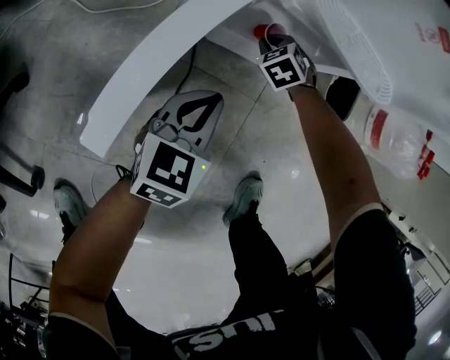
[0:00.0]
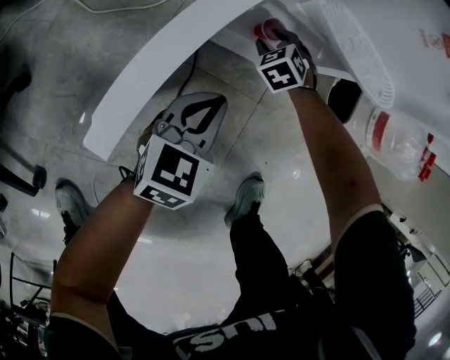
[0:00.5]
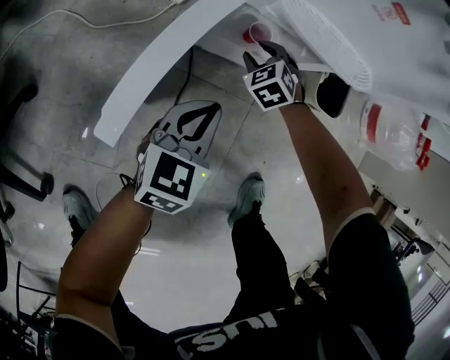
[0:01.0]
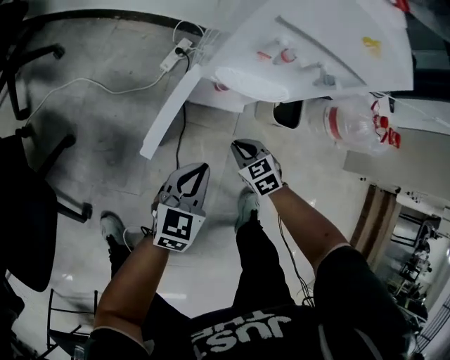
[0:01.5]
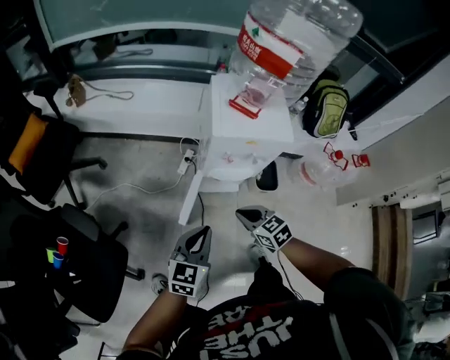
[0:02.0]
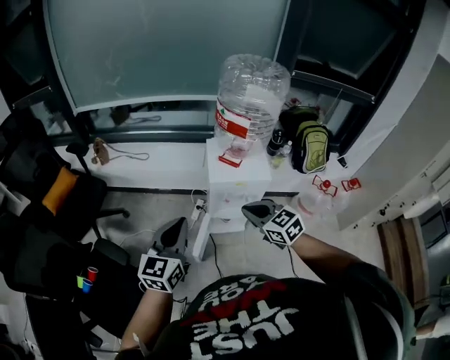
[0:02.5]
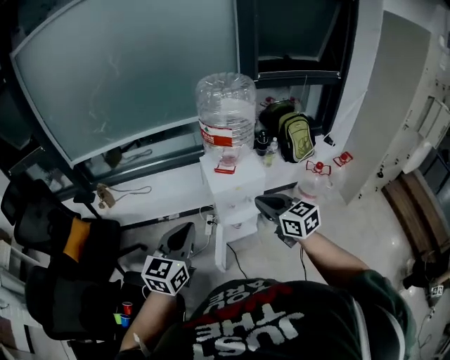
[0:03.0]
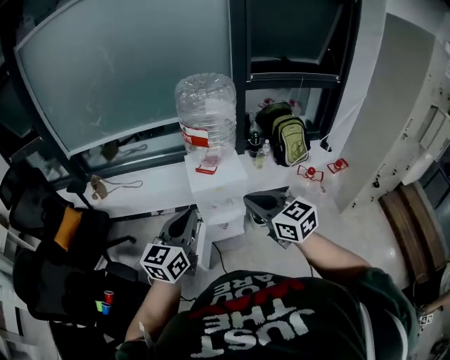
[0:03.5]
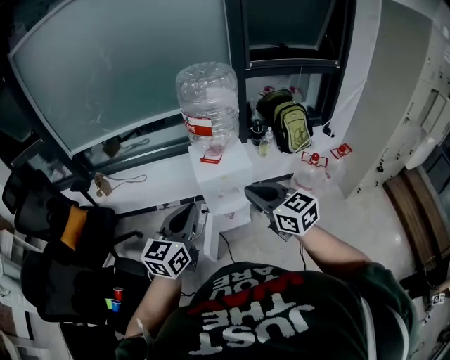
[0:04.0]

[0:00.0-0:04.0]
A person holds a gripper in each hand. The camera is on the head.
0:00.0 to 0:02.0: The right gripper moves upward and backward, some 70 cm, rotates approximately 50 degrees, and opens and closes again. The left gripper heads upward, covering approximately 50 cm.
0:02.0 to 0:04.0: Both grippers travel together upward, about 40 cm. The right gripper tips its fingers upward by some 30 degrees.

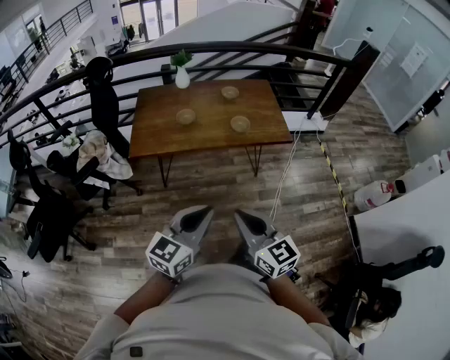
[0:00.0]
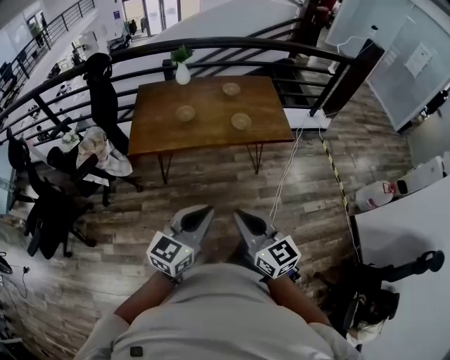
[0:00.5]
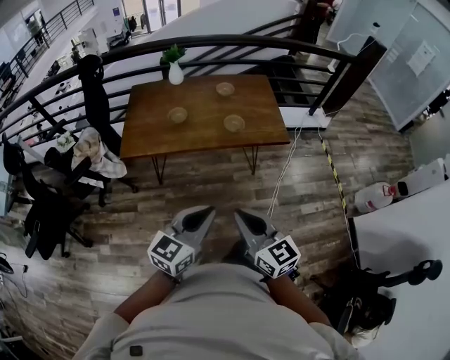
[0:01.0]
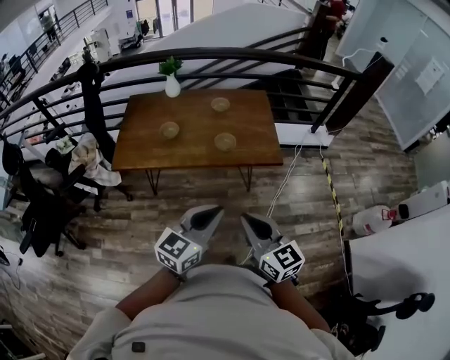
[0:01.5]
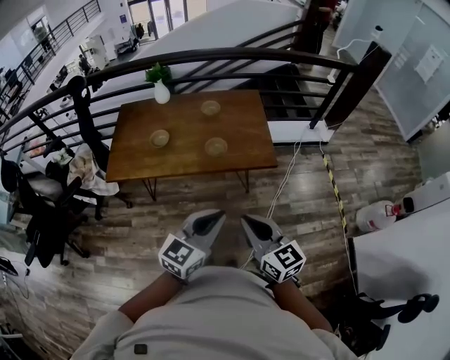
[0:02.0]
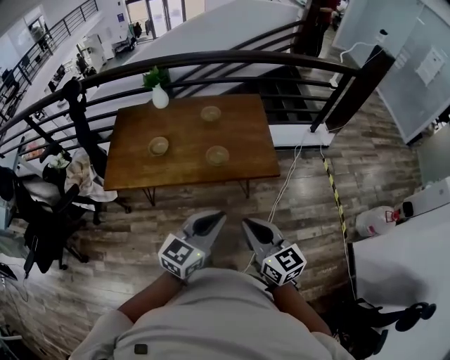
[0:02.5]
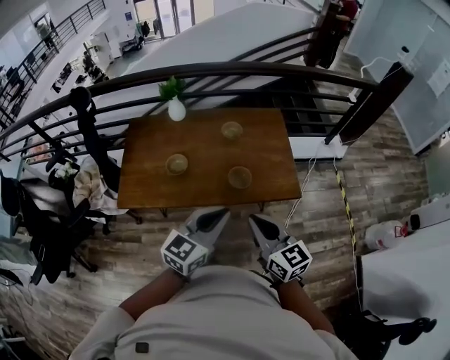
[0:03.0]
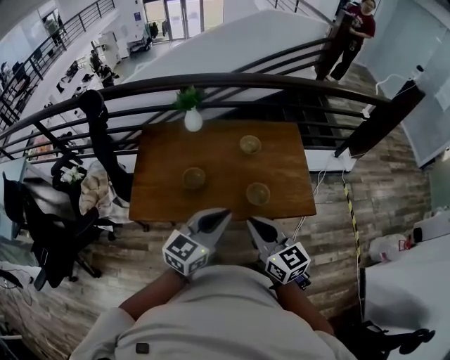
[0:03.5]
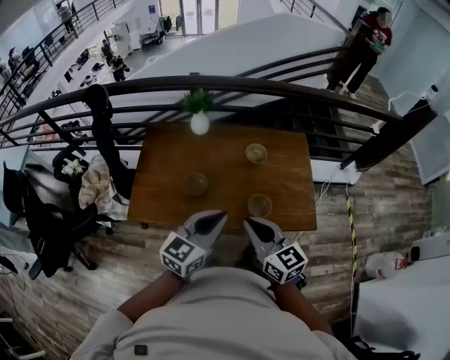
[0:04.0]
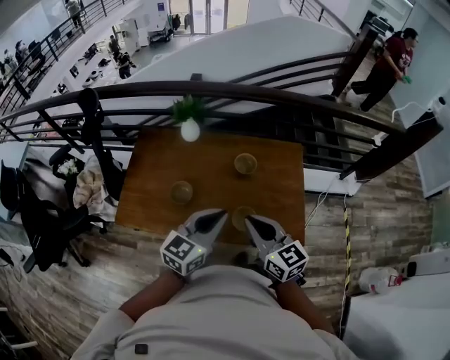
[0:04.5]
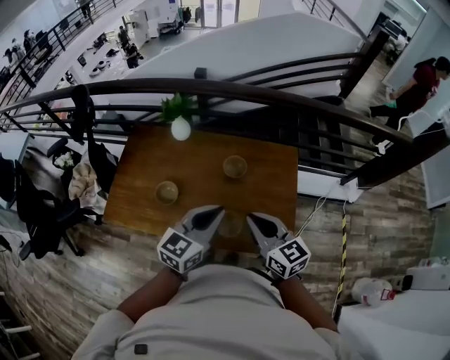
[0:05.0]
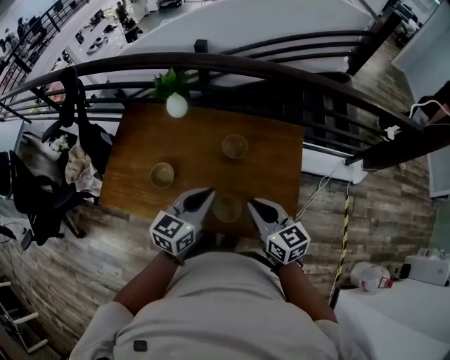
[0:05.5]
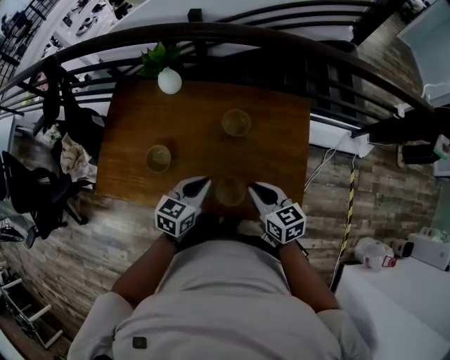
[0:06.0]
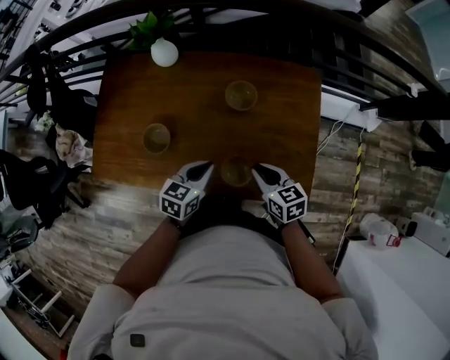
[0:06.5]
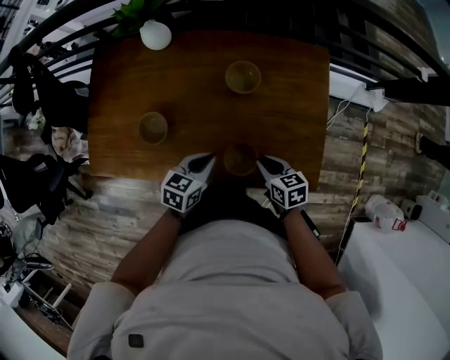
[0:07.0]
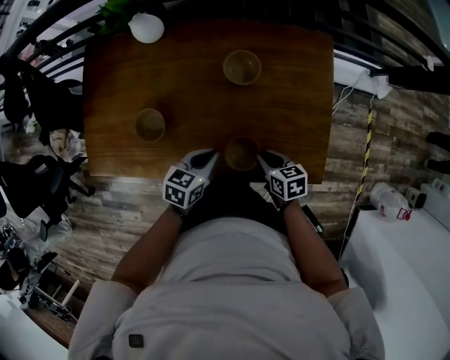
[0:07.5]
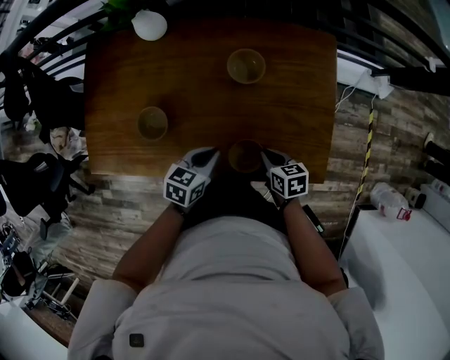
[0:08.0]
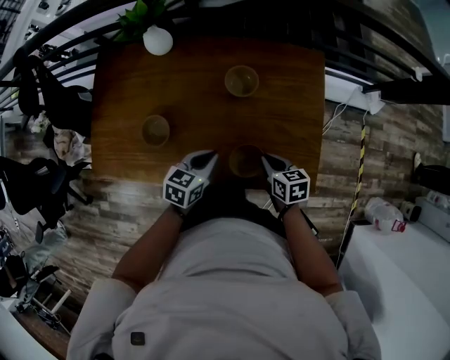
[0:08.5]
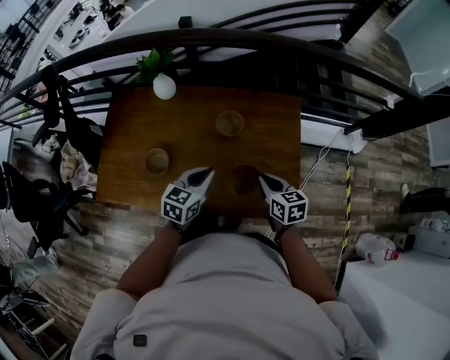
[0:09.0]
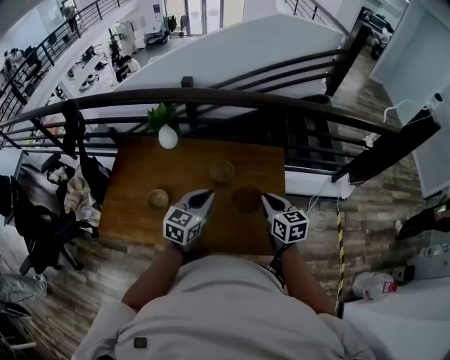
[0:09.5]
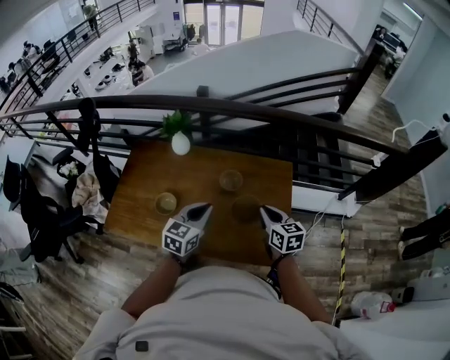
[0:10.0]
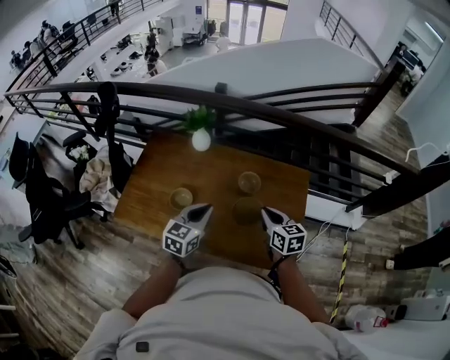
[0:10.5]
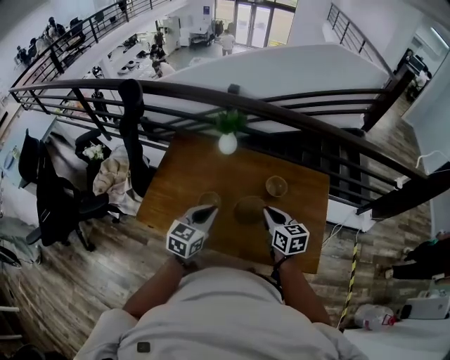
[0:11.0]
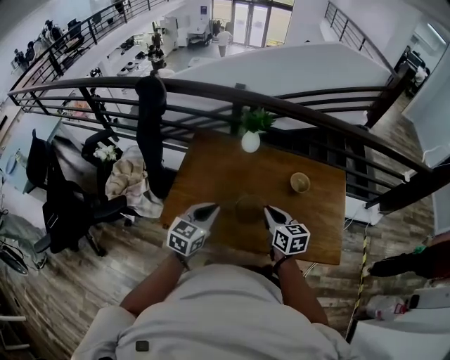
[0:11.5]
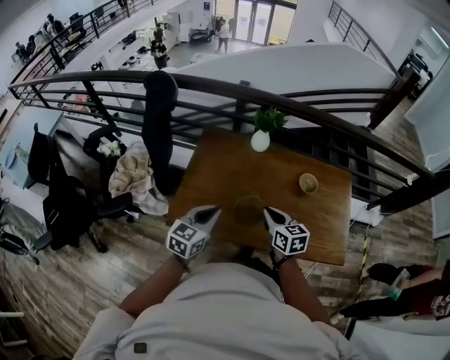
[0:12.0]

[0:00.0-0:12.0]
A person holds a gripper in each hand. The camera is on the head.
0:00.0 to 0:02.0: Both grippers travel together to the right and forward, approximately 30 cm.
0:02.0 to 0:04.0: Both grippers move forward and to the left, about 40 cm.
0:04.0 to 0:06.0: The right gripper shifts about 35 cm to the right, forward and downward, and swivels approximately 20 degrees, while the left gripper moves downward, forward and to the right, about 30 cm, and swivels some 20 degrees.
0:06.0 to 0:08.0: Both grippers move downward, some 20 cm. The right gripper swivels approximately 30 degrees.
0:08.0 to 0:10.0: The two grippers go about 30 cm upward. The right gripper turns by approximately 30 degrees, while the left gripper swivels approximately 30 degrees.
0:10.0 to 0:12.0: The two grippers travel together, to the left, about 50 cm.

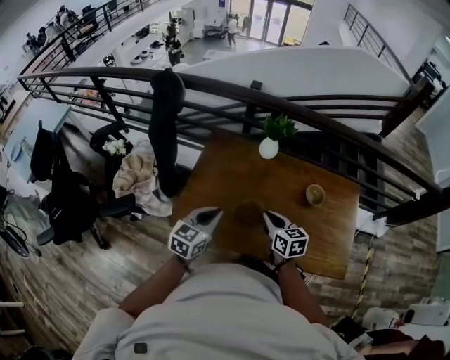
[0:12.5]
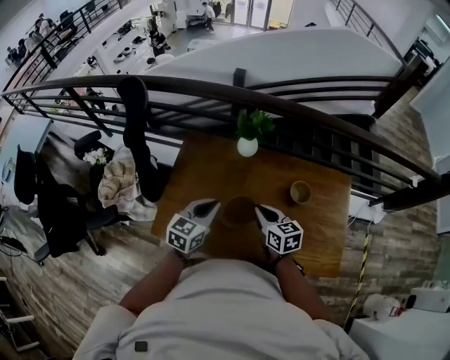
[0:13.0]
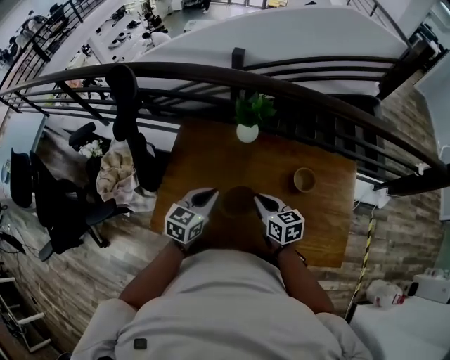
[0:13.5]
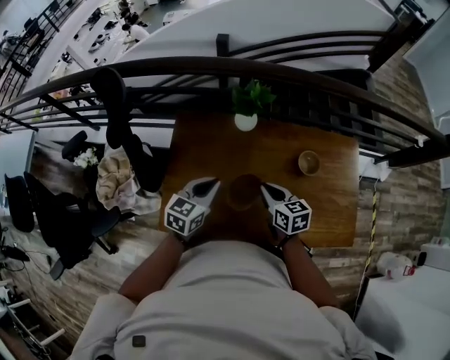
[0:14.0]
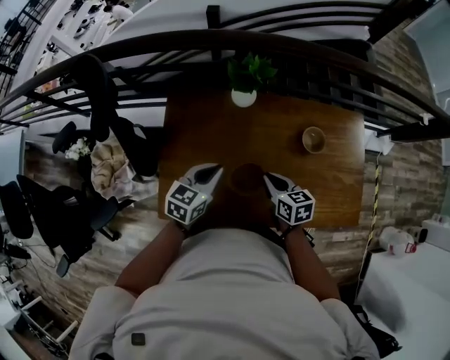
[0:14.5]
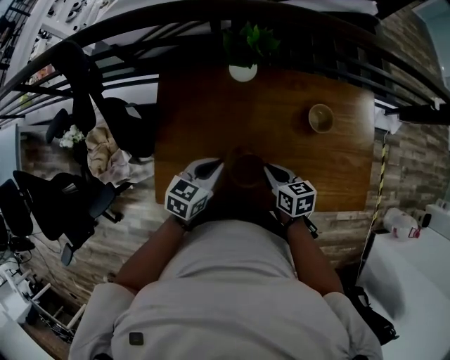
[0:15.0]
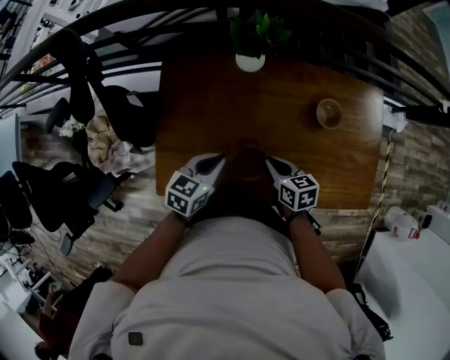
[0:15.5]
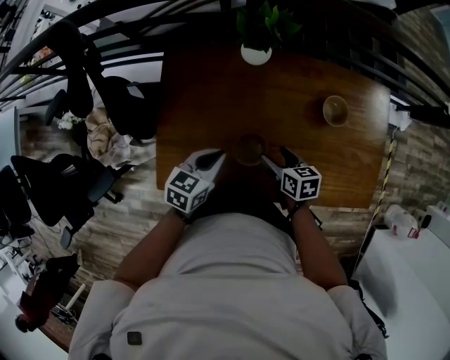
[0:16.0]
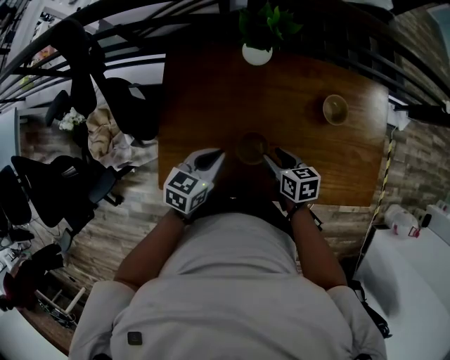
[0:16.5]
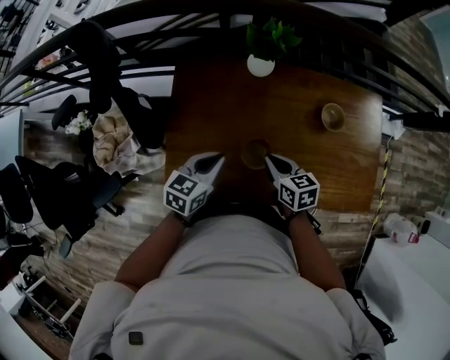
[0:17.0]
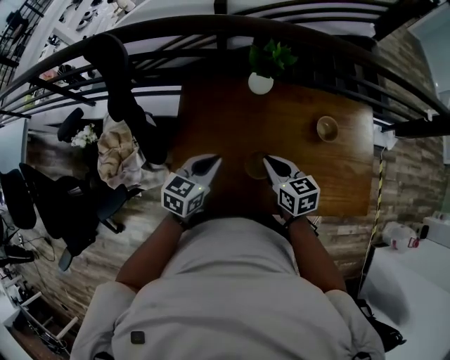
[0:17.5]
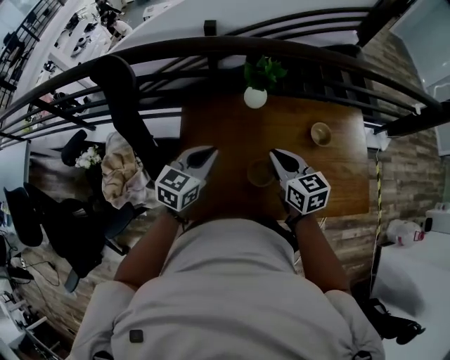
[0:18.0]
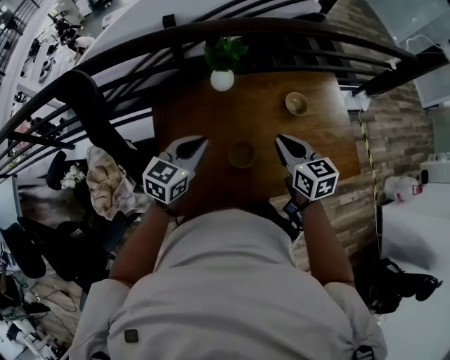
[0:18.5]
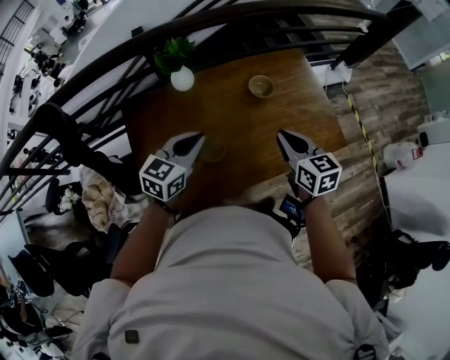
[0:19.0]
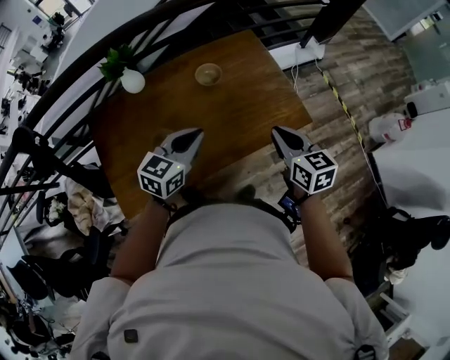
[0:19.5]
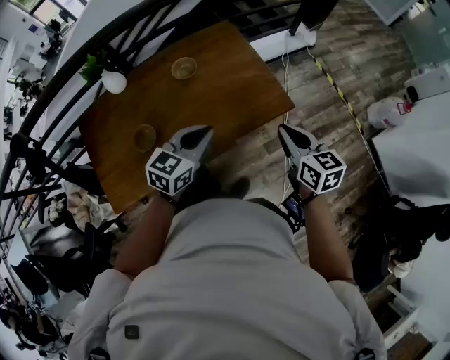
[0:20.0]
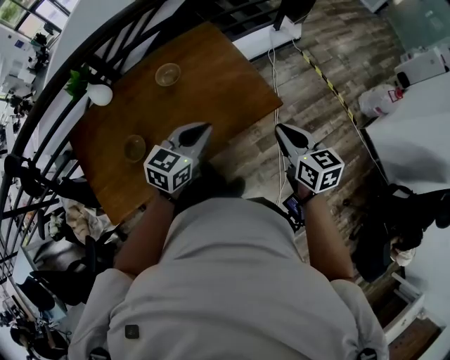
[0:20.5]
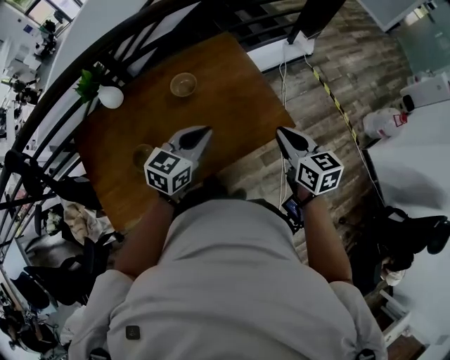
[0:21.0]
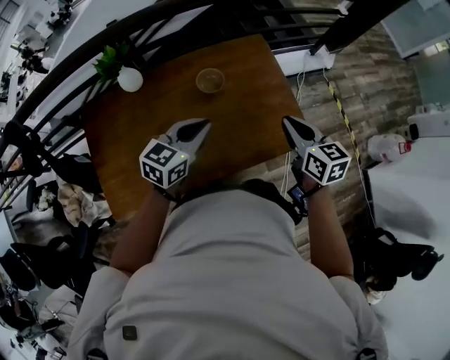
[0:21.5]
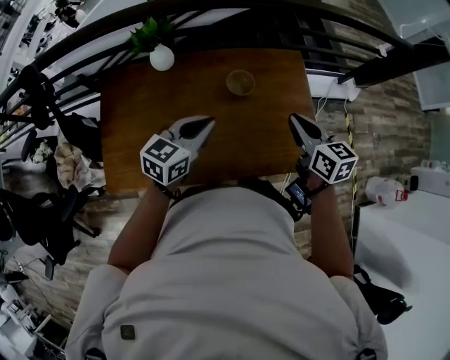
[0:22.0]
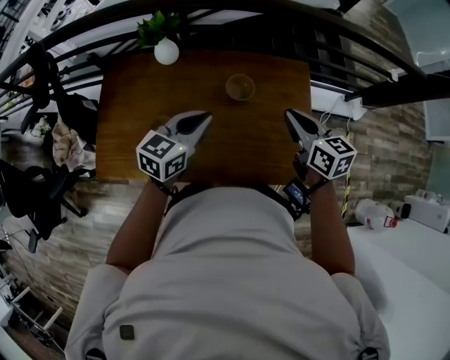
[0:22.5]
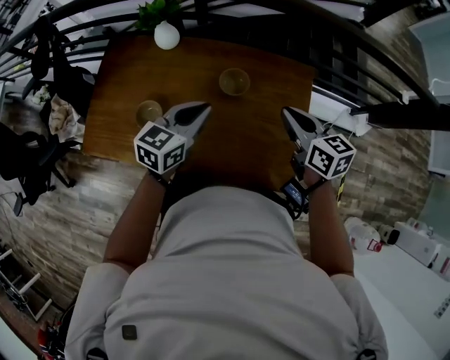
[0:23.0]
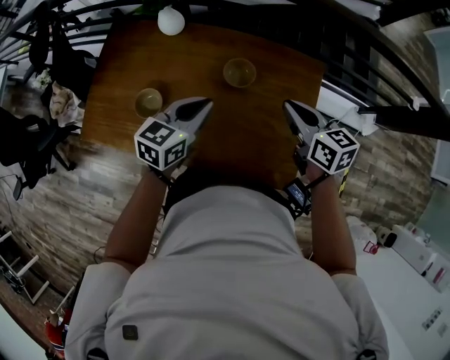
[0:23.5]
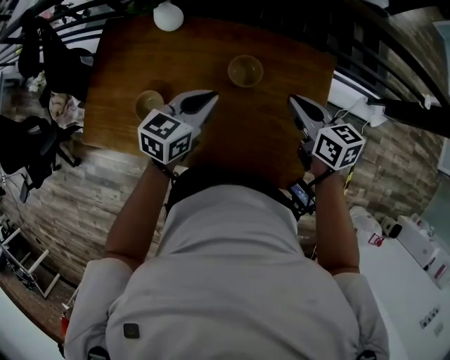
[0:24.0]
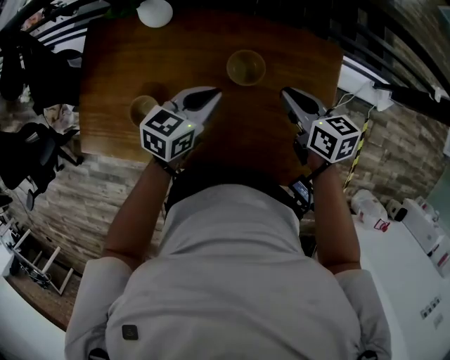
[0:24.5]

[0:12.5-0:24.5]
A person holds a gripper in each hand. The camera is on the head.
0:12.5 to 0:14.5: The left gripper is displaced forward and downward by approximately 20 cm. Meanwhile the right gripper travels forward, downward and to the right by some 15 cm.
0:14.5 to 0:16.5: The two grippers go approximately 10 cm downward. The right gripper opens up.
0:16.5 to 0:18.5: The two grippers go about 20 cm upward. The right gripper swivels some 30 degrees, and closes its fingers; the left gripper changes its angle by about 30 degrees.
0:18.5 to 0:20.5: Both grippers are carried to the right, roughly 60 cm. The right gripper changes its angle by roughly 20 degrees. The left gripper rotates about 20 degrees.
0:20.5 to 0:22.5: The right gripper ends up approximately 35 cm from where it was, and changes its angle by some 30 degrees; the left gripper shifts by approximately 25 cm, and rotates some 30 degrees.
0:22.5 to 0:24.5: The two grippers go about 20 cm downward and forward.
